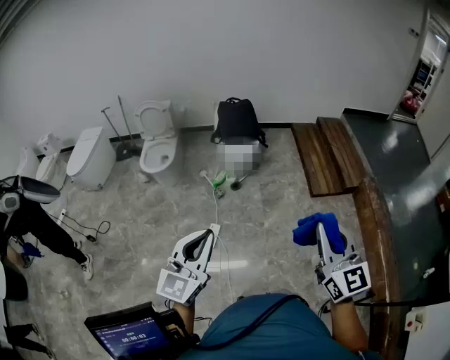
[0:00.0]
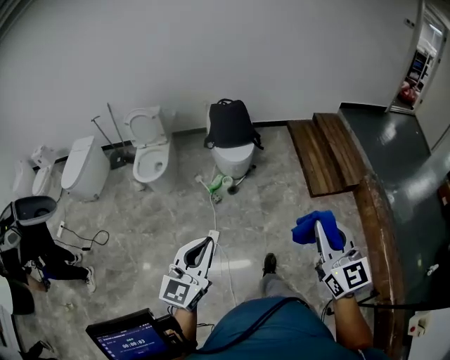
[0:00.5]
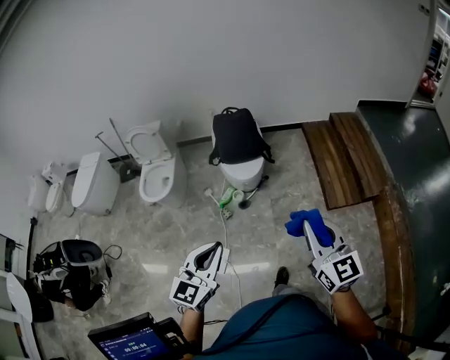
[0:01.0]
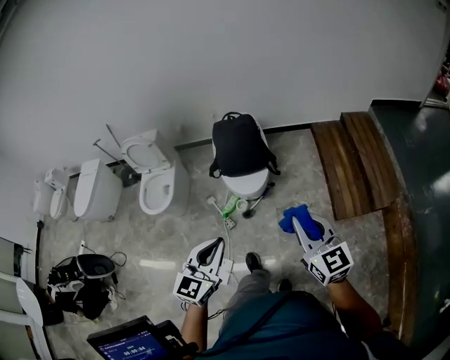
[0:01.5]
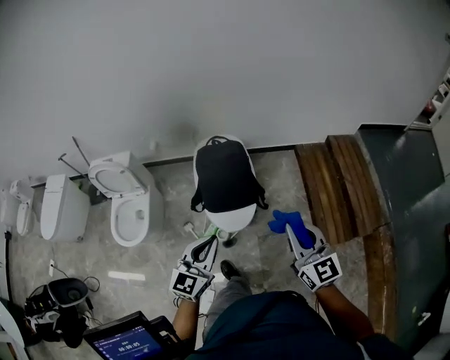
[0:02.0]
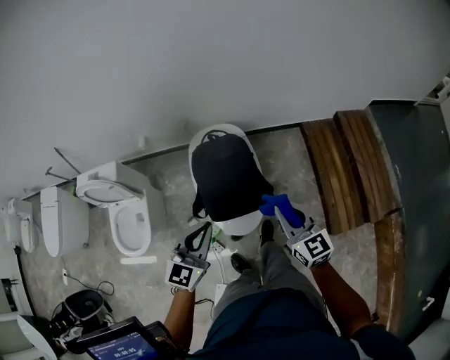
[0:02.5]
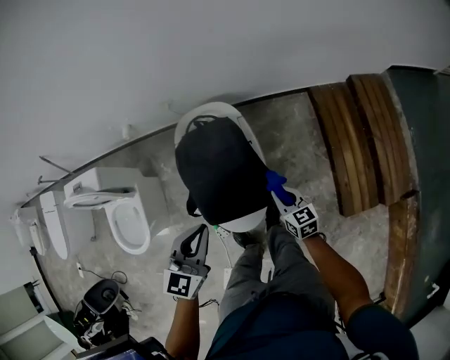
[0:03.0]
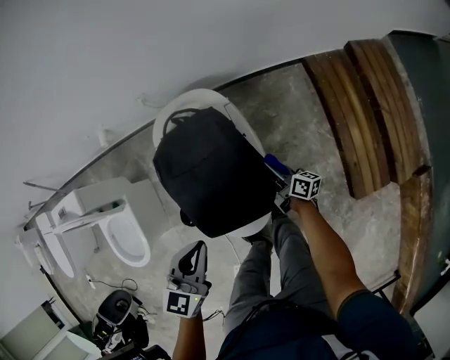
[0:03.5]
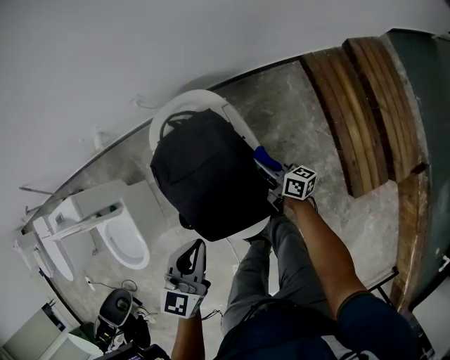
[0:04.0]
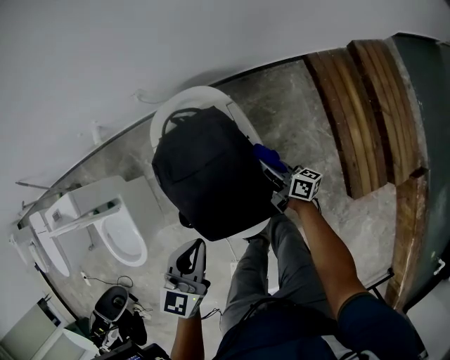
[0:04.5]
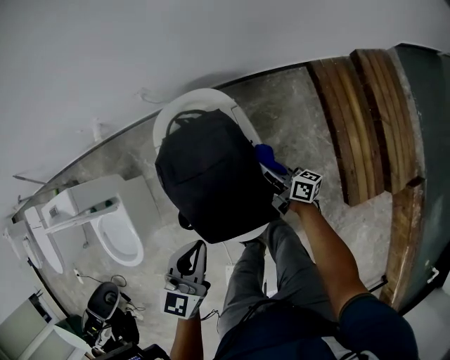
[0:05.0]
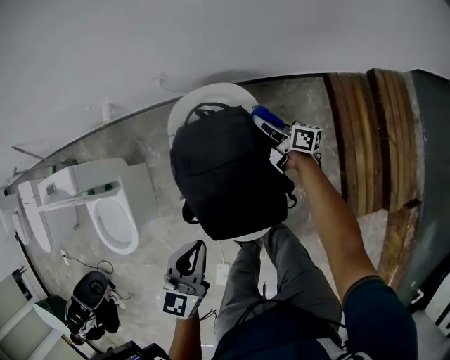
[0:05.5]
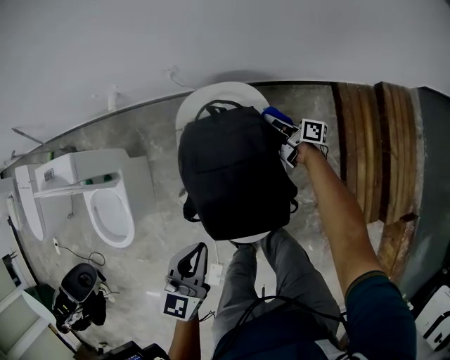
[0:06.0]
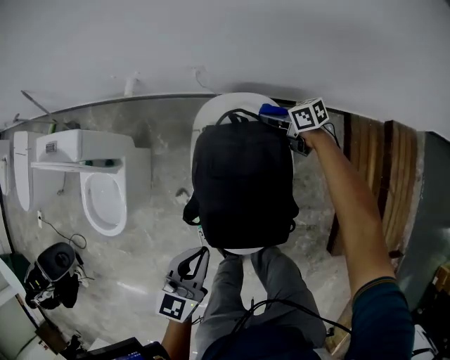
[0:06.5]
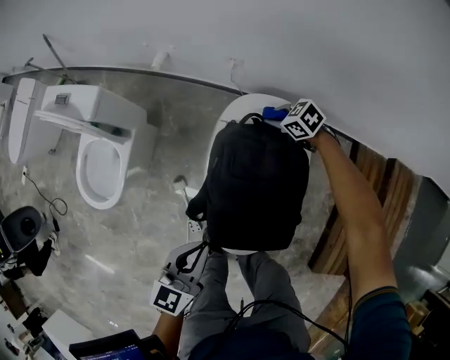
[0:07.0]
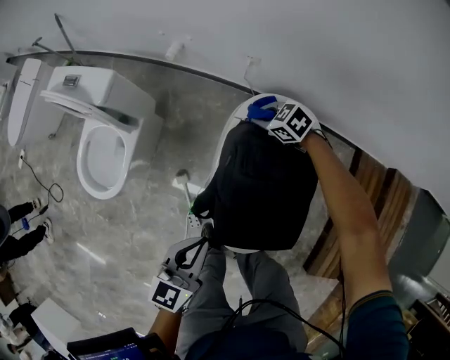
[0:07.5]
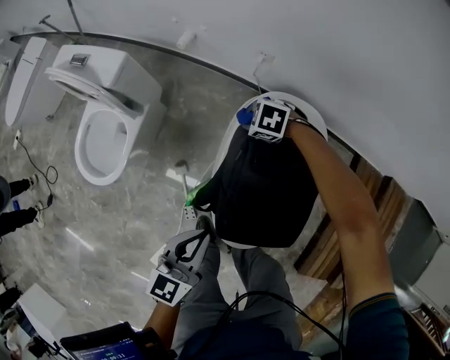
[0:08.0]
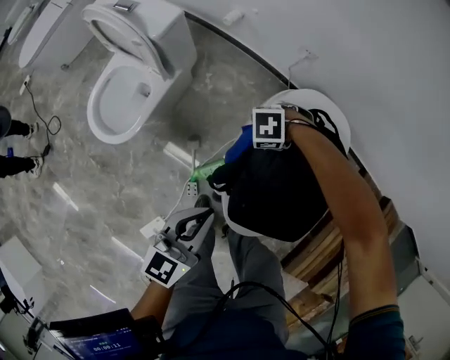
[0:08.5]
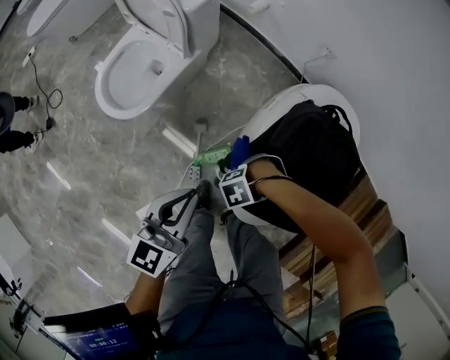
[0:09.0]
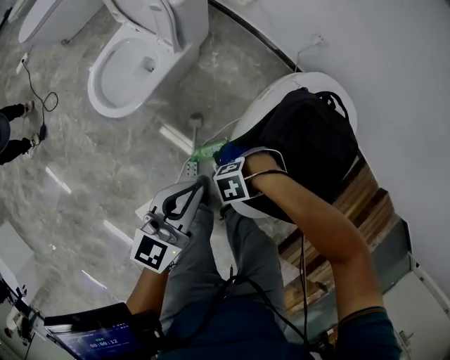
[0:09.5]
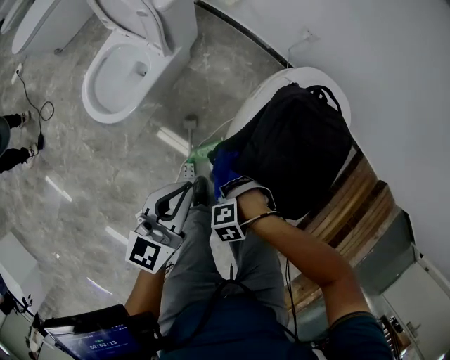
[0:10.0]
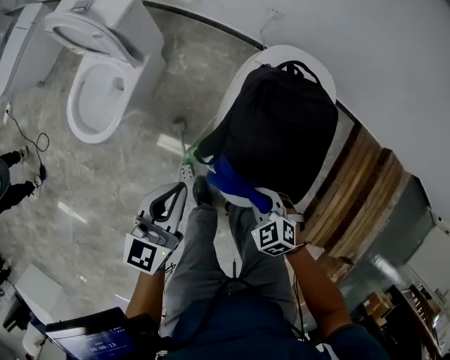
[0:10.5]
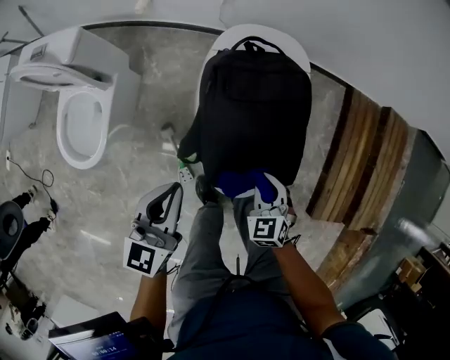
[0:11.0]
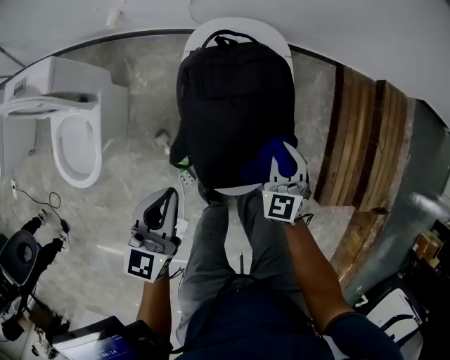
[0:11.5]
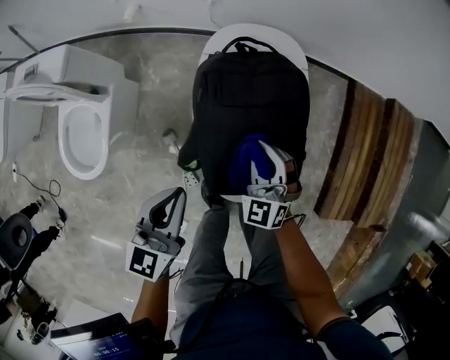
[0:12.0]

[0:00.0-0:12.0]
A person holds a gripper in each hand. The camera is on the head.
0:00.0 to 0:02.0: The two grippers travel together, forward, roughly 70 cm.
0:02.0 to 0:04.0: The left gripper heads forward and downward, covering roughly 40 cm, and turns by roughly 20 degrees. The right gripper travels downward and forward by about 60 cm, and rotates around the line of its fingers by some 60 degrees, clockwise from behind.
0:04.0 to 0:06.0: The right gripper travels forward by roughly 20 cm, and swivels approximately 20 degrees, while the left gripper shifts approximately 5 cm to the left.
0:06.0 to 0:08.0: The left gripper changes place by roughly 10 cm, and swivels approximately 20 degrees. The right gripper shifts by some 30 cm, and tilts its fingers some 60 degrees downward.
0:08.0 to 0:10.0: The right gripper shifts by approximately 40 cm, and swivels approximately 50 degrees; the left gripper moves some 10 cm.
0:10.0 to 0:12.0: The left gripper ends up about 10 cm from where it was, and turns by roughly 20 degrees; the right gripper moves about 25 cm, and tilts its fingers approximately 50 degrees upward.

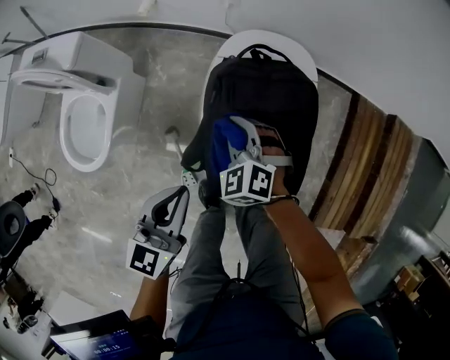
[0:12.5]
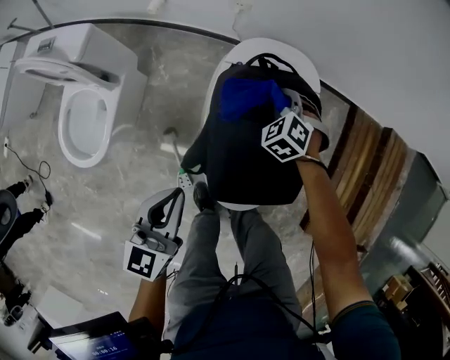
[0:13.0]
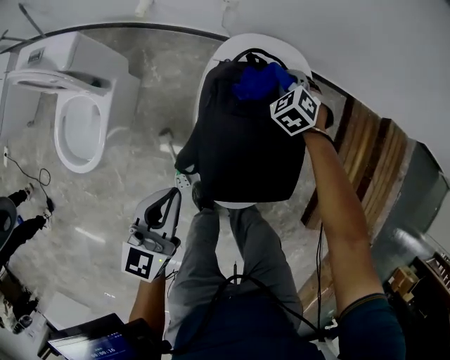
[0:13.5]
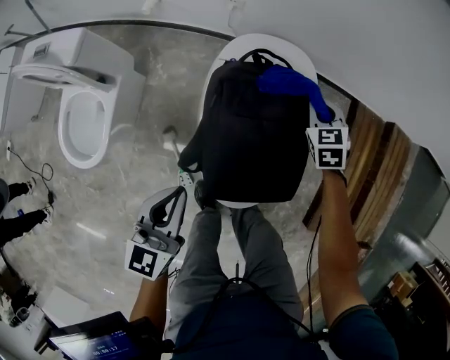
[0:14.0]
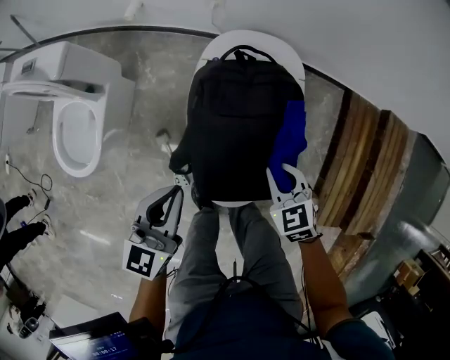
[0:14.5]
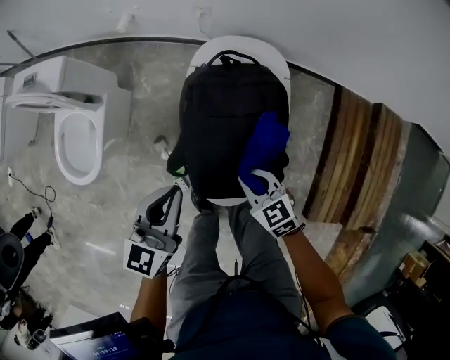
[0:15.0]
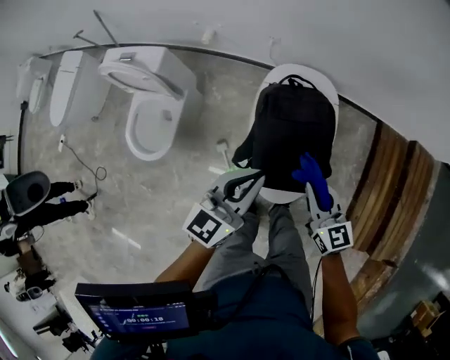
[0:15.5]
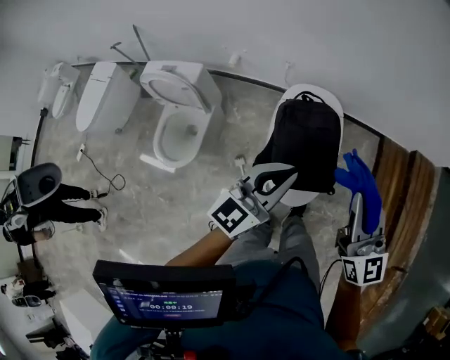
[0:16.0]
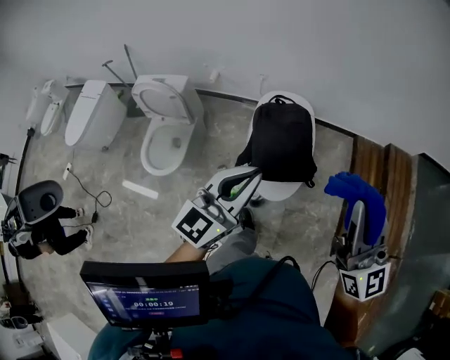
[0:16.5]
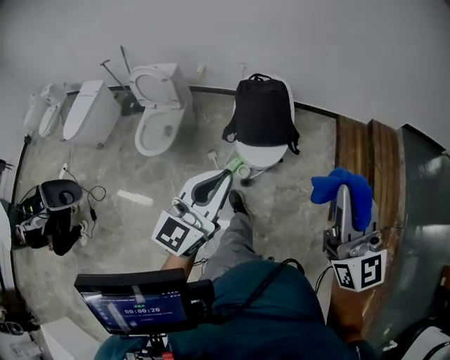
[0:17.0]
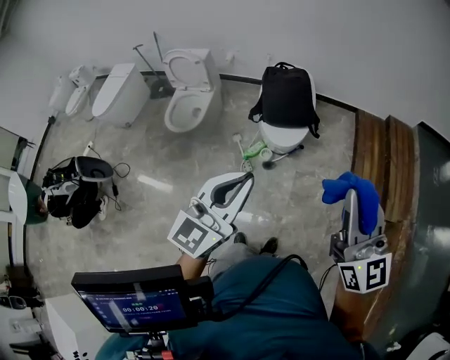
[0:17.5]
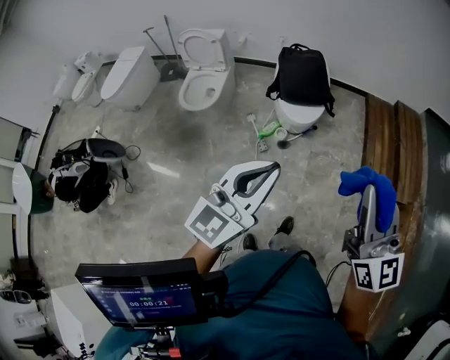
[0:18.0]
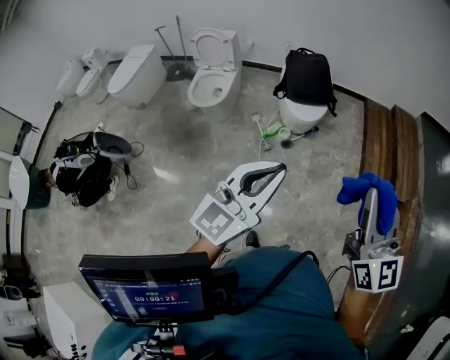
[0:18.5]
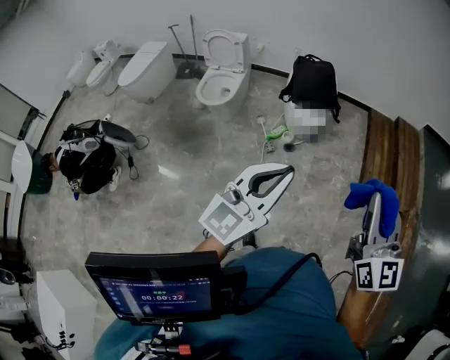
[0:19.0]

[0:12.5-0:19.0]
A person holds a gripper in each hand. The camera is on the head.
0:12.5 to 0:14.5: The right gripper travels to the right by some 15 cm, travels forward and back again, roughly 15 cm each way, and rotates roughly 30 degrees.
0:14.5 to 0:17.0: The pair of grippers is taken backward, approximately 50 cm. The grippers both shift upward by about 40 cm. The left gripper turns by about 30 degrees; the right gripper points its fingers some 60 degrees further upward.
0:17.0 to 0:19.0: The grippers both shift backward by approximately 35 cm.

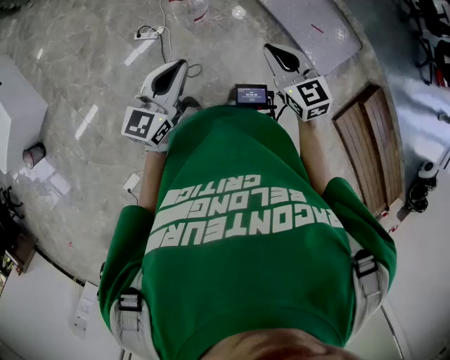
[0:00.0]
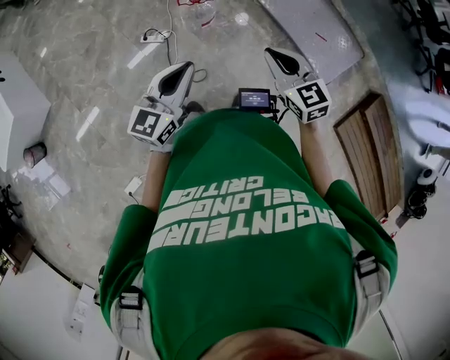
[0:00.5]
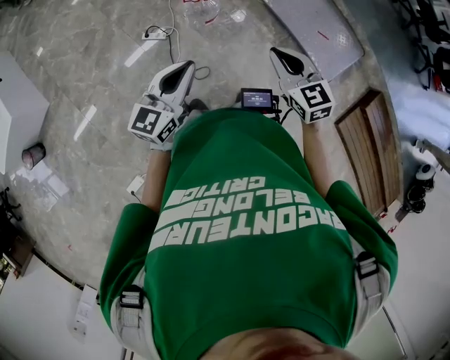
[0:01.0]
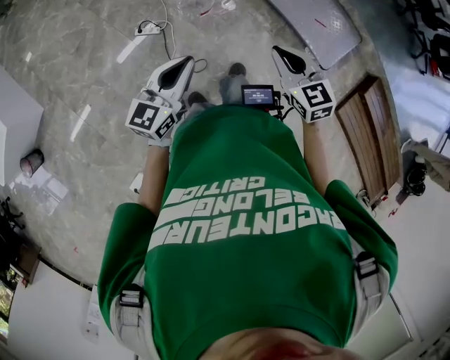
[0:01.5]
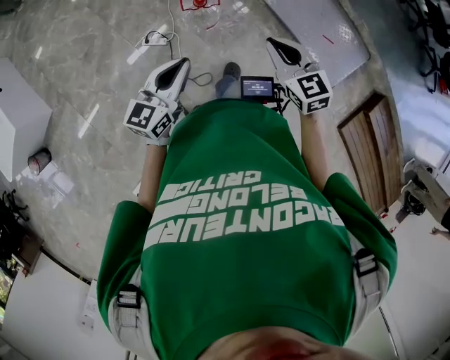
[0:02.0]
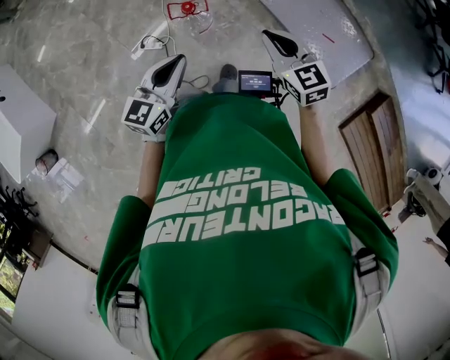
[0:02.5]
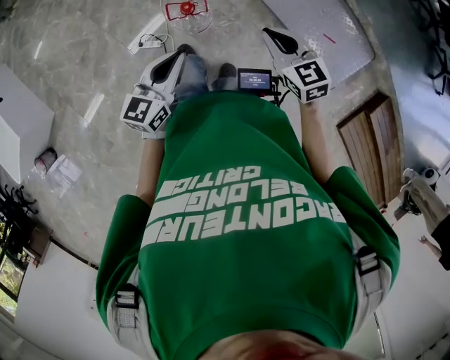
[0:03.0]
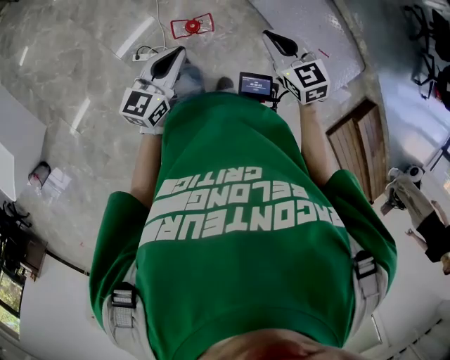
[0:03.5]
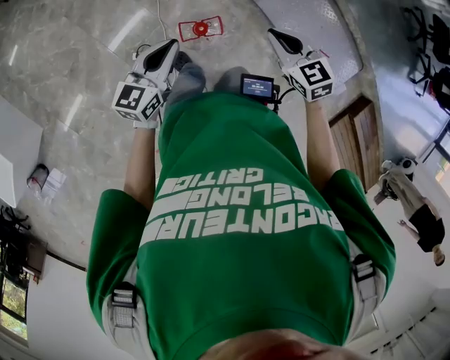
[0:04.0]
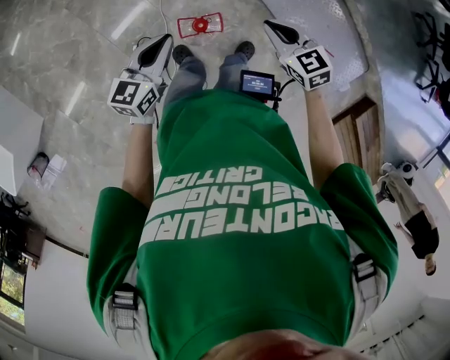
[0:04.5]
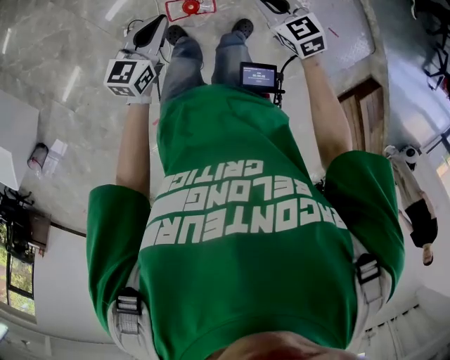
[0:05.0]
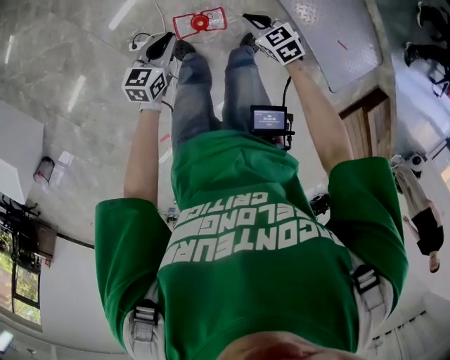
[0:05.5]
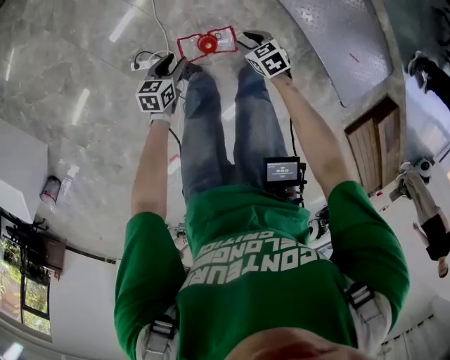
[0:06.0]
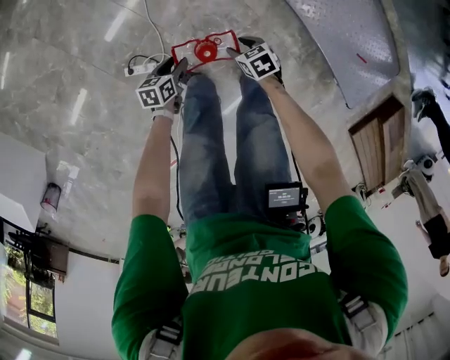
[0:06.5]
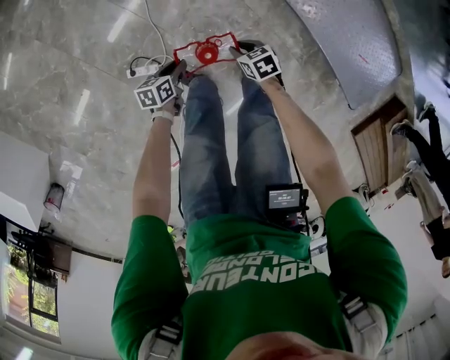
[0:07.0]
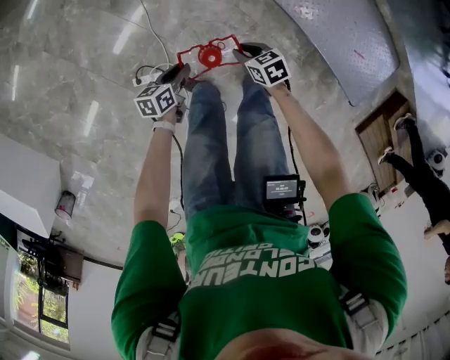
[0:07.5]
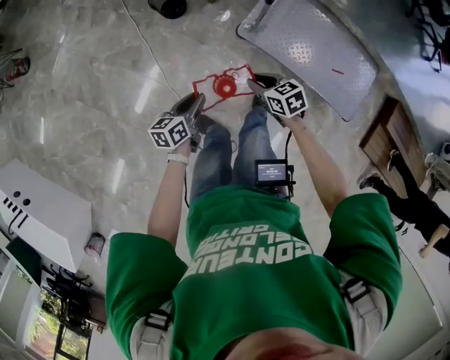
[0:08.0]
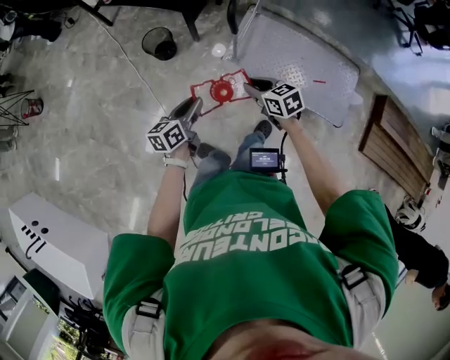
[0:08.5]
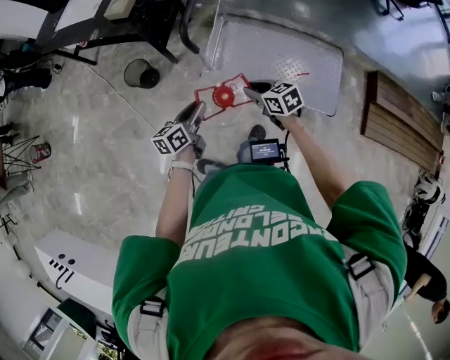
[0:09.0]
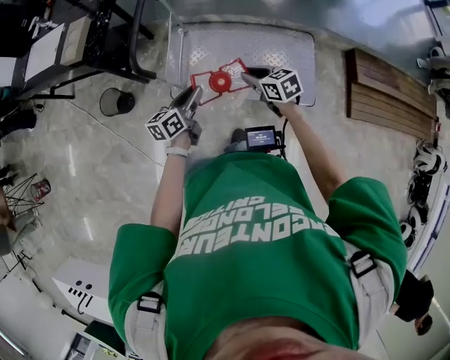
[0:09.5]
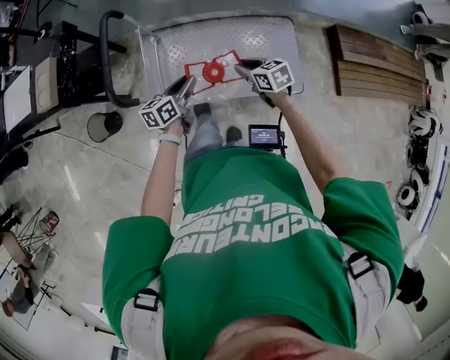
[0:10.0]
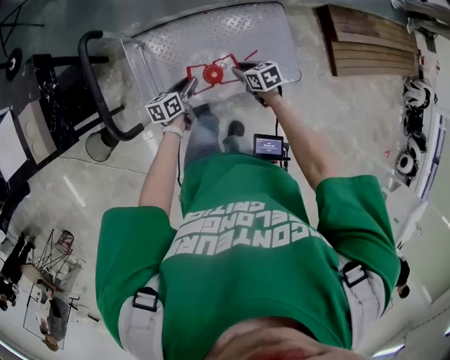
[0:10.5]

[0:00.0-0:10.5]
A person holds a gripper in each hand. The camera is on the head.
0:00.0 to 0:02.0: Both grippers move forward and to the left, approximately 10 cm.
0:02.0 to 0:04.0: The two grippers go some 30 cm forward.
0:04.0 to 0:06.5: The two grippers go roughly 50 cm downward. The left gripper tilts its fingers about 30 degrees downward, and opens its fingers. The right gripper changes its angle by approximately 40 degrees, and opens its fingers.
0:06.5 to 0:08.5: Both grippers travel together upward, roughly 40 cm. The right gripper rotates some 40 degrees, and closes its fingers. Meanwhile the left gripper changes its angle by about 30 degrees.
0:08.5 to 0:10.5: The two grippers travel together, roughly 50 cm. The right gripper swivels some 40 degrees. Meanwhile the left gripper turns by some 40 degrees.
